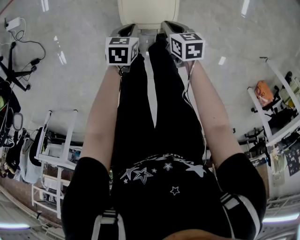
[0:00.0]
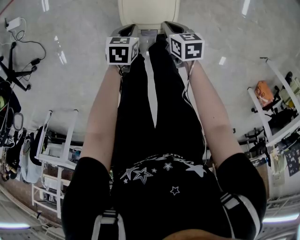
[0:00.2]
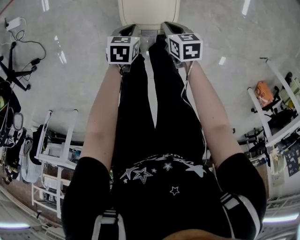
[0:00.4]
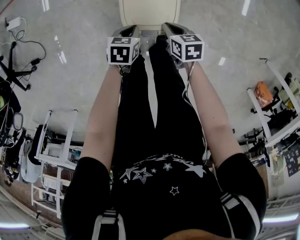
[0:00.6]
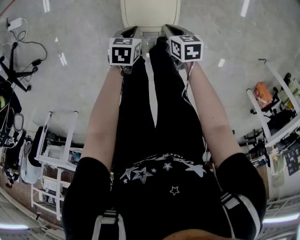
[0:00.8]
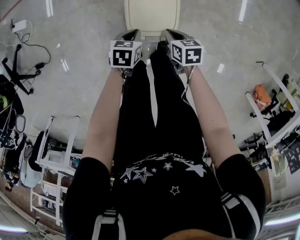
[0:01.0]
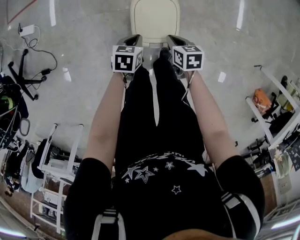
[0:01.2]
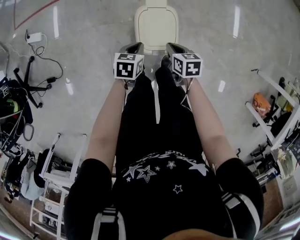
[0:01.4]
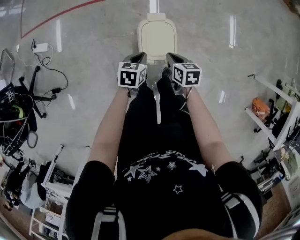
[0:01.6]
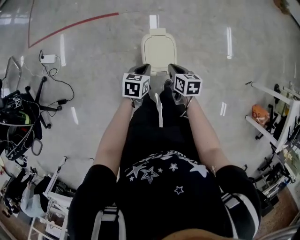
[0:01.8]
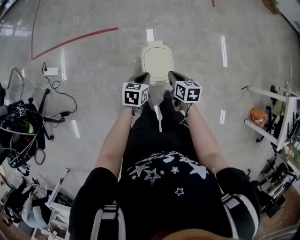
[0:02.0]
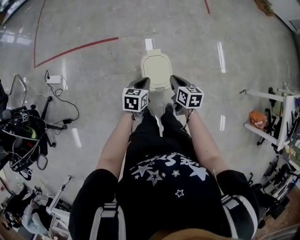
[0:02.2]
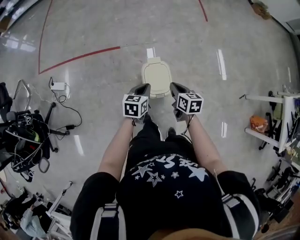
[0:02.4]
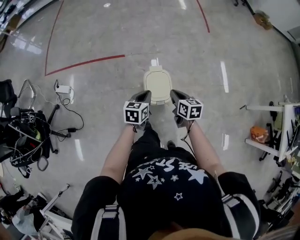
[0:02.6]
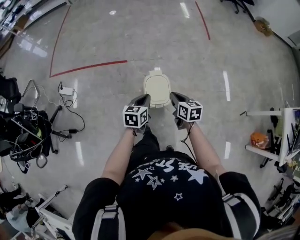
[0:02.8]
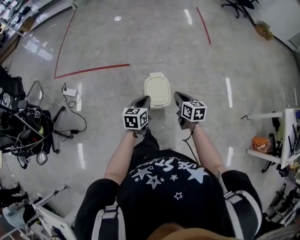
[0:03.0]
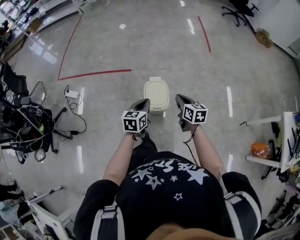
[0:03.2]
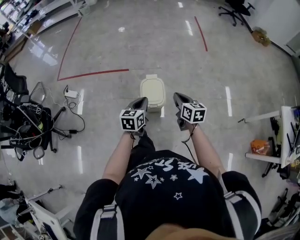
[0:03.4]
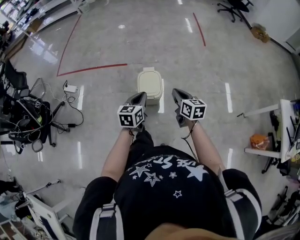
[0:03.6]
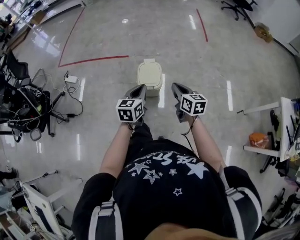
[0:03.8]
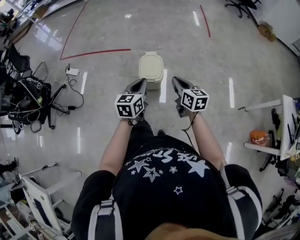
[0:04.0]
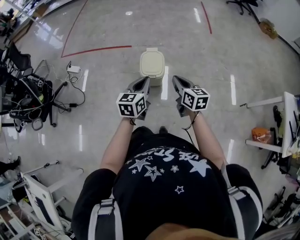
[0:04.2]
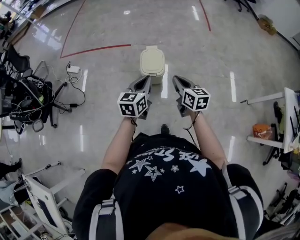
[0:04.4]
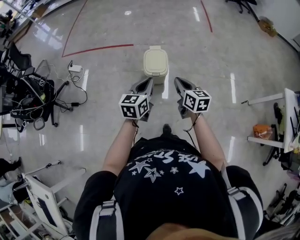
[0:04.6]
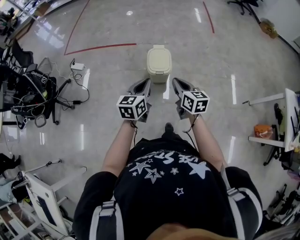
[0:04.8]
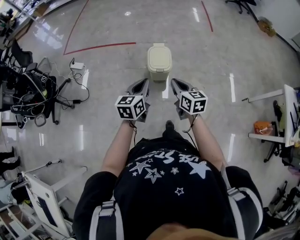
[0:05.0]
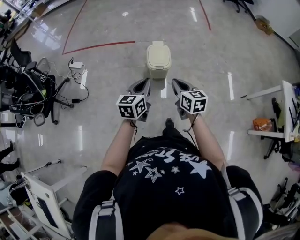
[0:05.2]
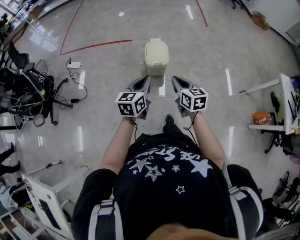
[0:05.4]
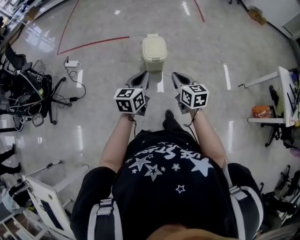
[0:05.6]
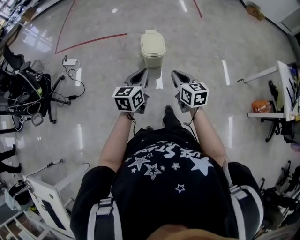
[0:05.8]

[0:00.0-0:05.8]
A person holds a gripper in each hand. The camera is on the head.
0.0 to 1.4 s: The two grippers go about 10 cm upward.
1.4 to 2.8 s: Both grippers move upward, roughly 25 cm. The left gripper turns by some 20 degrees; the right gripper changes its angle by some 20 degrees.
2.8 to 4.4 s: The left gripper is displaced backward and upward by about 25 cm; the right gripper shifts about 20 cm backward.
4.4 to 5.8 s: The two grippers go some 15 cm backward and to the left.

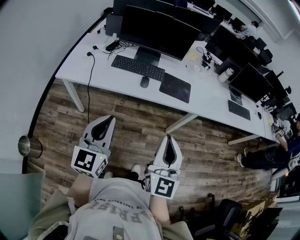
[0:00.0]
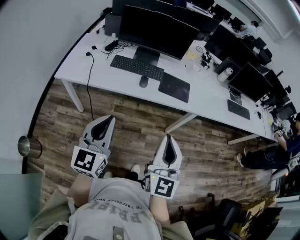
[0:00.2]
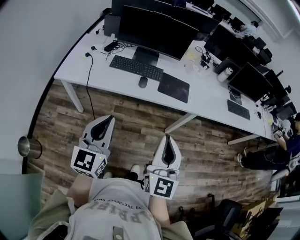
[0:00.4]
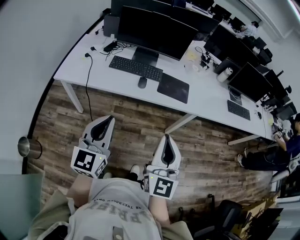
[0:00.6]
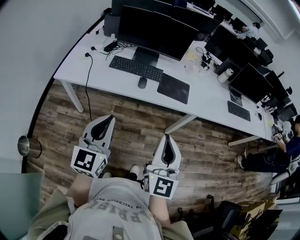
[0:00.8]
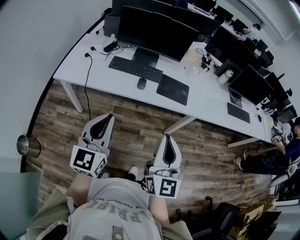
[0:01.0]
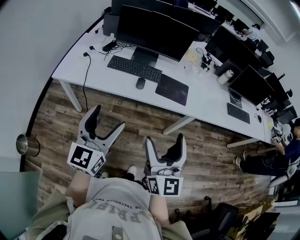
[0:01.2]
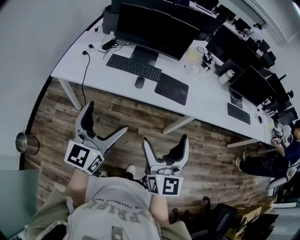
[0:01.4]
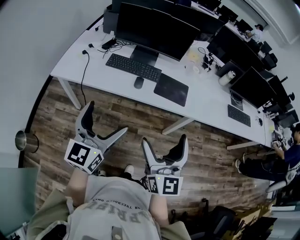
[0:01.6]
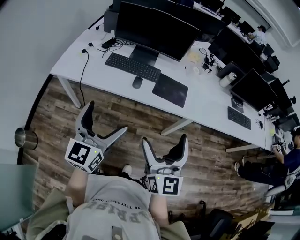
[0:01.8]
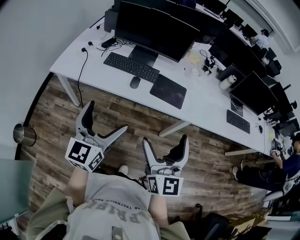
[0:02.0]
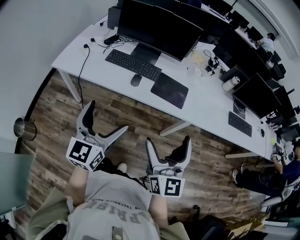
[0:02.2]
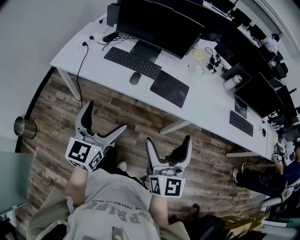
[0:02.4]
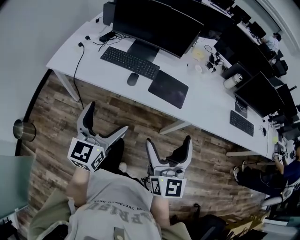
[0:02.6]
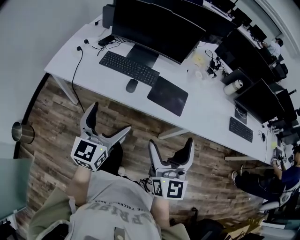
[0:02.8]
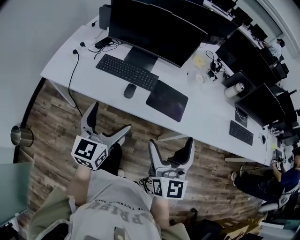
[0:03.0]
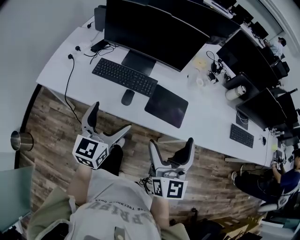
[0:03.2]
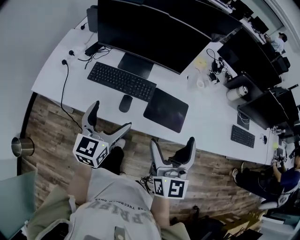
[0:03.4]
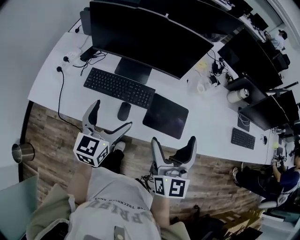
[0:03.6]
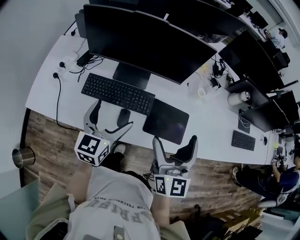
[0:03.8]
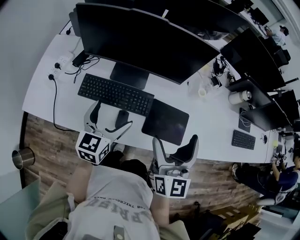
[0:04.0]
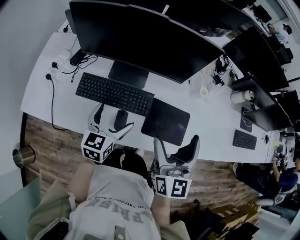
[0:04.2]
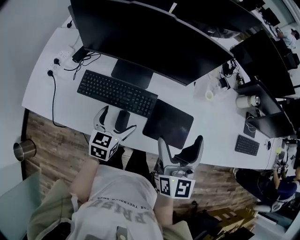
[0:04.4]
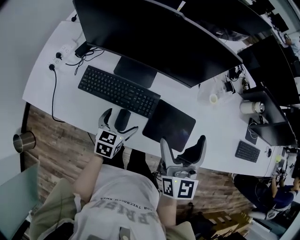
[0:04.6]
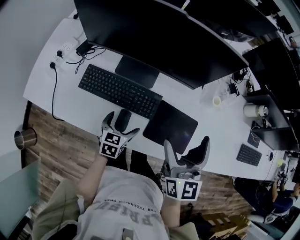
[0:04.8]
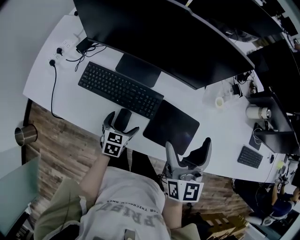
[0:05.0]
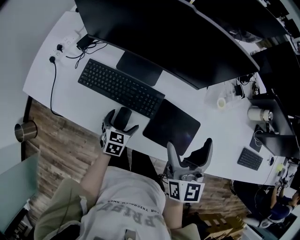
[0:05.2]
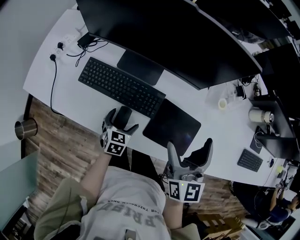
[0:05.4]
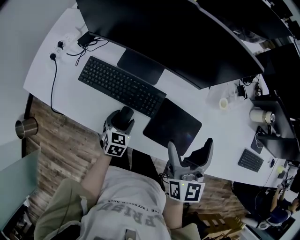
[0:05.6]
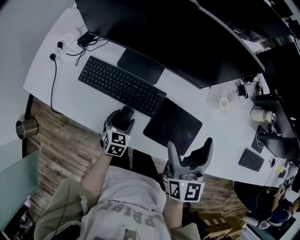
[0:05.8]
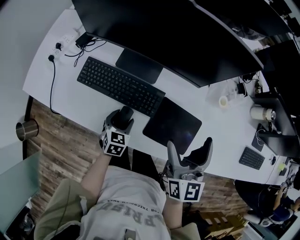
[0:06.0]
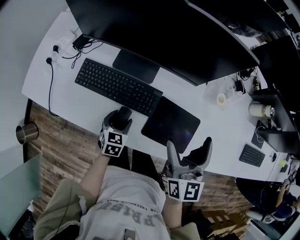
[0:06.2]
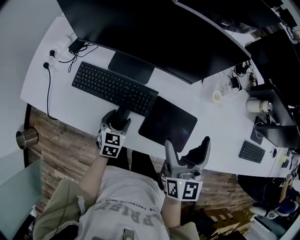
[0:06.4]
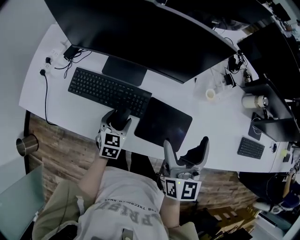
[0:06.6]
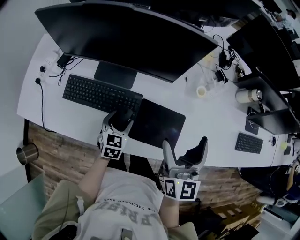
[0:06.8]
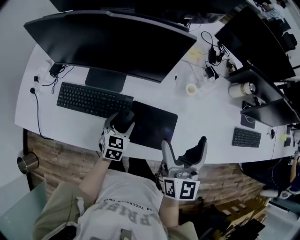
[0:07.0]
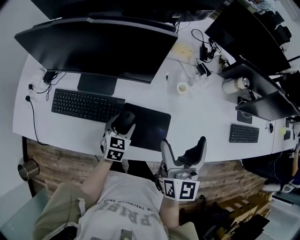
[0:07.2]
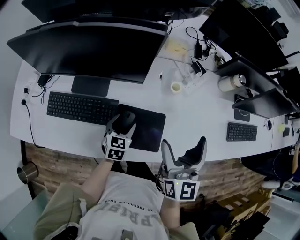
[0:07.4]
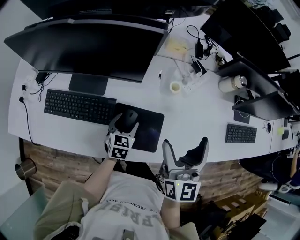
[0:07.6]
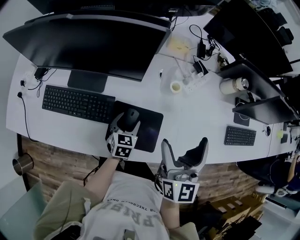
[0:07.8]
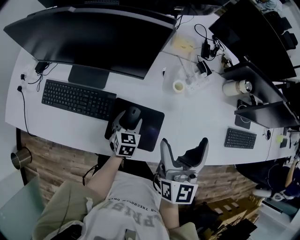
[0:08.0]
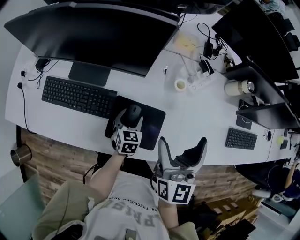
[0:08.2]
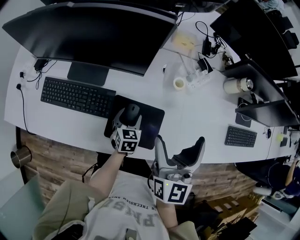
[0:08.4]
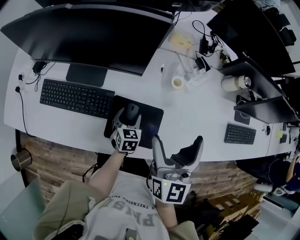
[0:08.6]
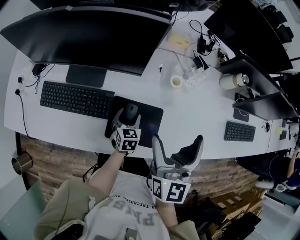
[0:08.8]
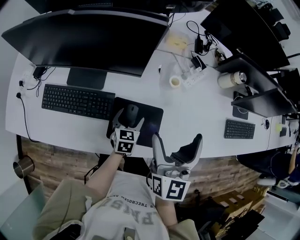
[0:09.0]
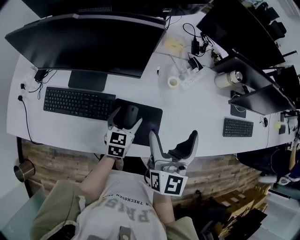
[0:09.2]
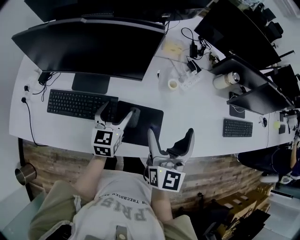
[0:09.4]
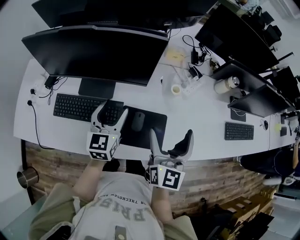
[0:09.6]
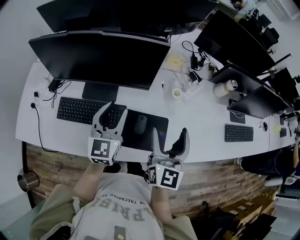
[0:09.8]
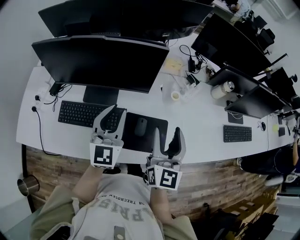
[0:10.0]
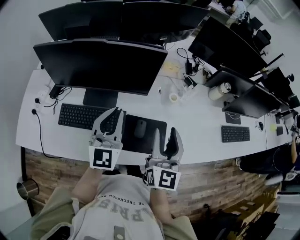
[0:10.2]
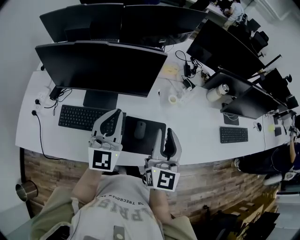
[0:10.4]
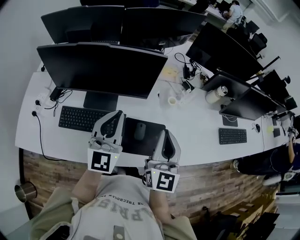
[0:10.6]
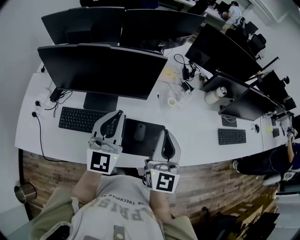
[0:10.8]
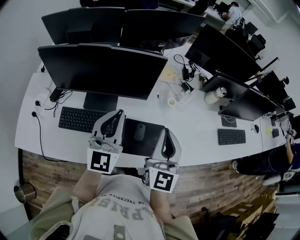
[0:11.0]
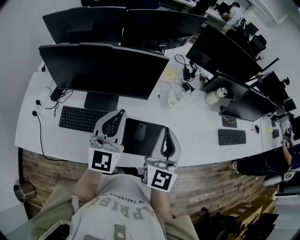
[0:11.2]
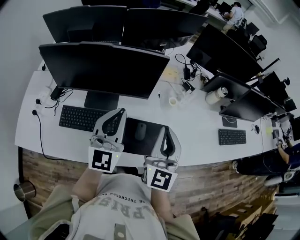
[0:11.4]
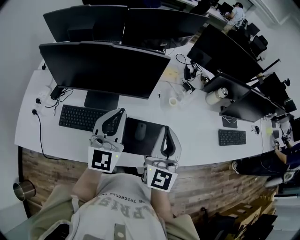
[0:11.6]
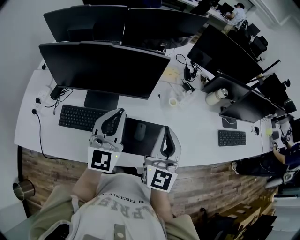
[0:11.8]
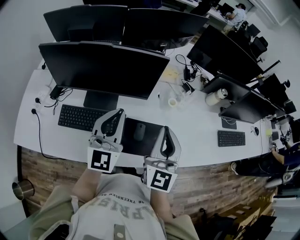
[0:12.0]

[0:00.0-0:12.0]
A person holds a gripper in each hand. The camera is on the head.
0.0 to 1.6 s: Both grippers move forward, approximately 5 cm. The right gripper opens its fingers; the left gripper opens.
1.6 to 3.0 s: The left gripper goes roughly 20 cm forward, downward and to the right; the right gripper shifts about 20 cm forward and to the right.
3.0 to 4.4 s: The right gripper heads forward, covering roughly 30 cm; the left gripper goes some 30 cm forward and downward, and rotates roughly 30 degrees.
4.4 to 6.0 s: The right gripper is displaced downward by roughly 5 cm; the left gripper goes approximately 15 cm downward, and closes up.
6.0 to 7.6 s: The right gripper is displaced to the right by approximately 15 cm, while the left gripper is displaced to the right and forward by about 20 cm.
7.6 to 9.0 s: The grippers stay close to where they were, moving slightly.
9.0 to 10.4 s: The right gripper goes about 10 cm to the left, and closes up, while the left gripper heads upward, covering about 30 cm, angles its fingers upward, by approximately 50 degrees, and closes its fingers.
10.4 to 12.0 s: There are only small adjustments of the grippers.

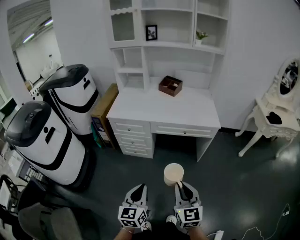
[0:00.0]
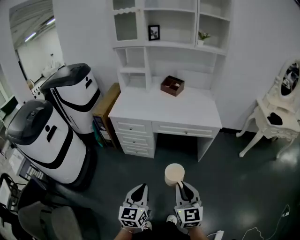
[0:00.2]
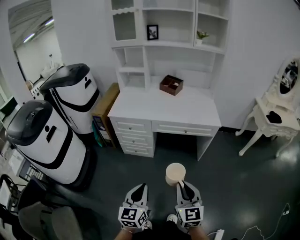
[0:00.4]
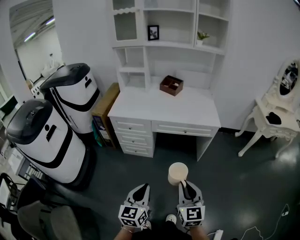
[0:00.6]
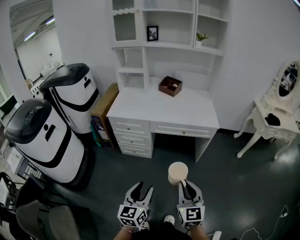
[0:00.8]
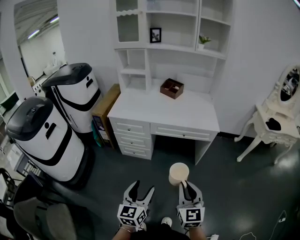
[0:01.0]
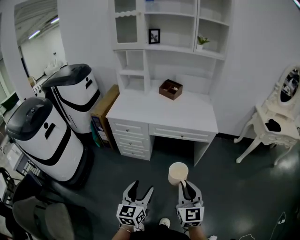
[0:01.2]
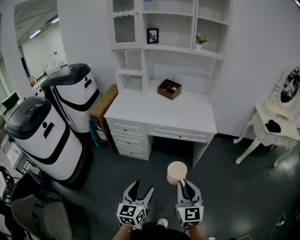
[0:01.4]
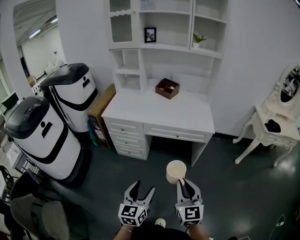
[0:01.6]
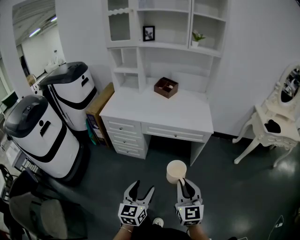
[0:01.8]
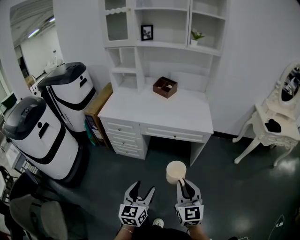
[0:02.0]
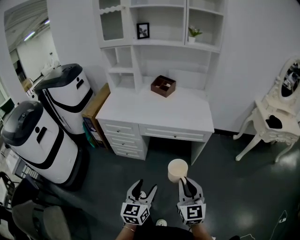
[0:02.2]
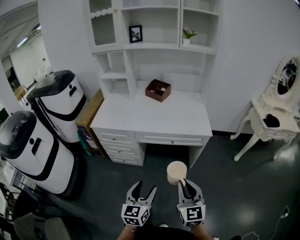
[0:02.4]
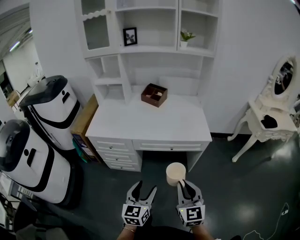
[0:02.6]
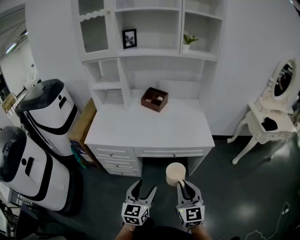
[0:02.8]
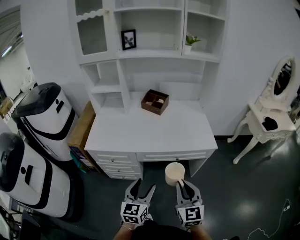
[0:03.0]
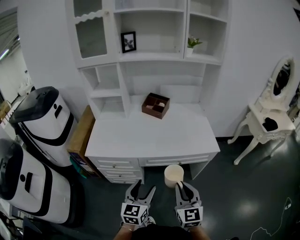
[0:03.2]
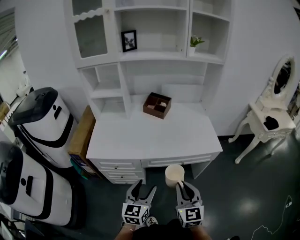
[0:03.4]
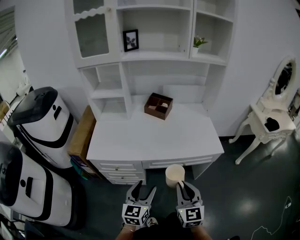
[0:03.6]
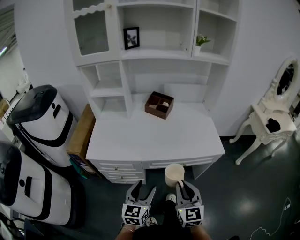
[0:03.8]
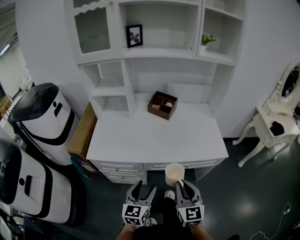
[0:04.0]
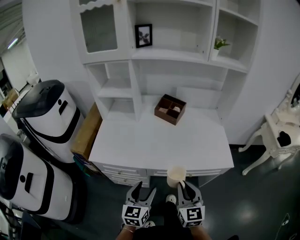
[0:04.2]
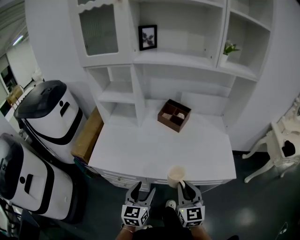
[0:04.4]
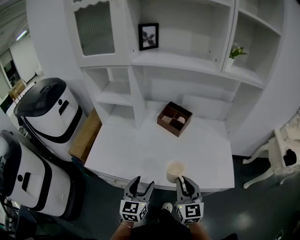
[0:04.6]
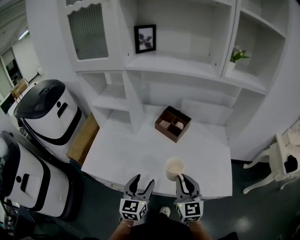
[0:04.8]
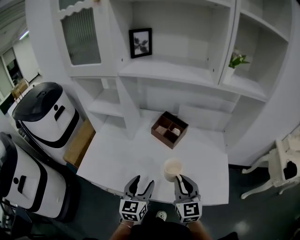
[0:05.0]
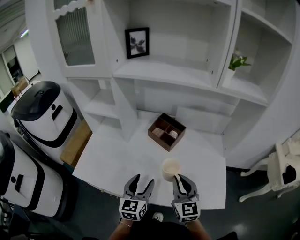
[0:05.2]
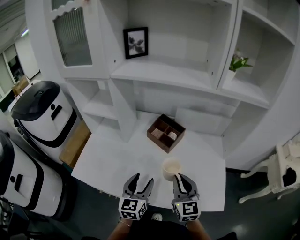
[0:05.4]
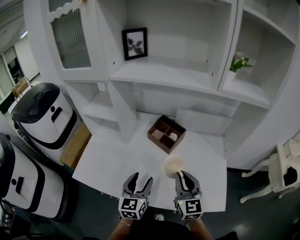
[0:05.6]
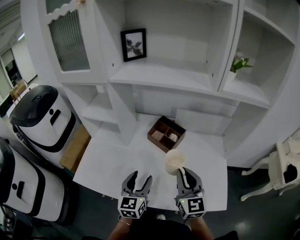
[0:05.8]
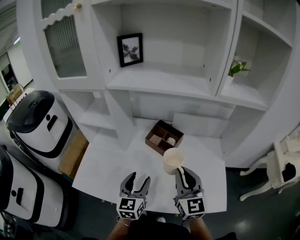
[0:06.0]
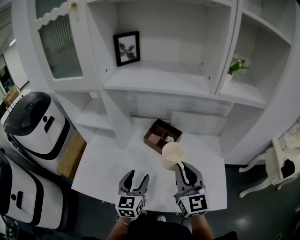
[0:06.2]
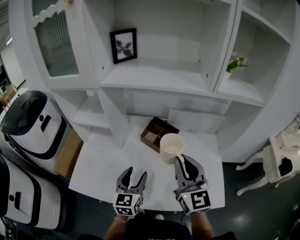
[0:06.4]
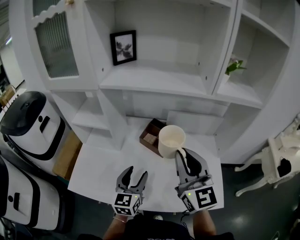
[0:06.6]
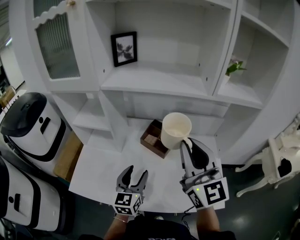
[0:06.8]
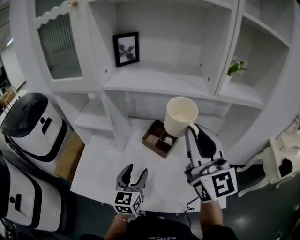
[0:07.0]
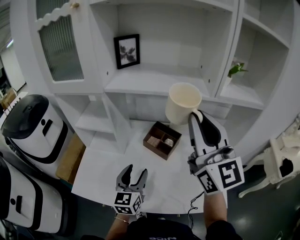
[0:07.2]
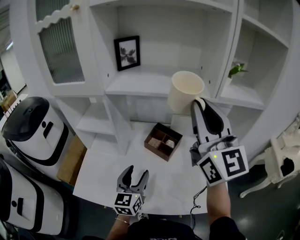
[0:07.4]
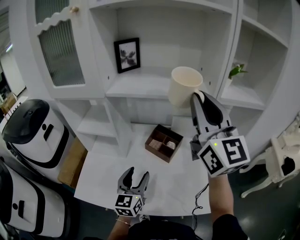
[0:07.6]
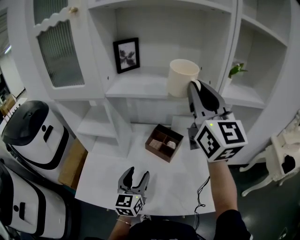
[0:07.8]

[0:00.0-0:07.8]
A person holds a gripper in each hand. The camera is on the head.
0.0 to 1.6 s: Both grippers travel together to the right, roughly 10 cm. The left gripper opens up.
1.6 to 3.2 s: Both grippers travel together forward, about 25 cm.
3.2 to 4.6 s: The grippers both shift forward by approximately 25 cm.
4.6 to 6.2 s: The right gripper goes approximately 20 cm forward and upward. Meanwhile the left gripper goes some 15 cm forward.
6.2 to 7.8 s: The left gripper changes place by approximately 5 cm. Meanwhile the right gripper is displaced upward and forward by roughly 30 cm.
